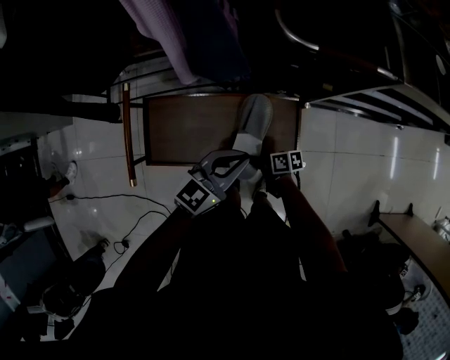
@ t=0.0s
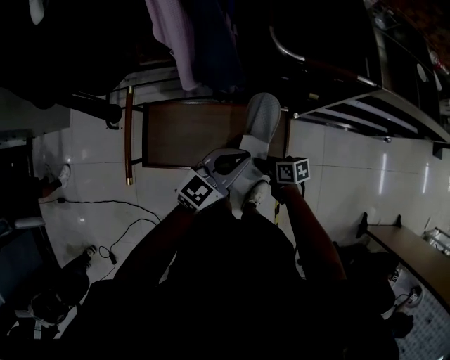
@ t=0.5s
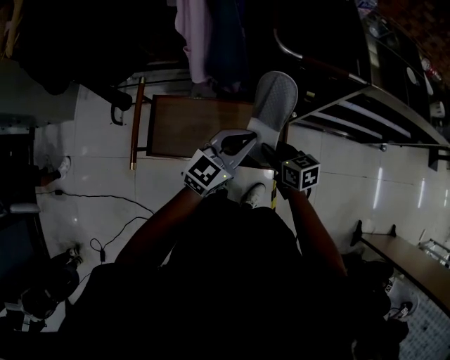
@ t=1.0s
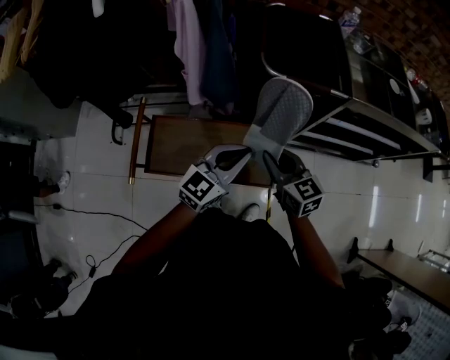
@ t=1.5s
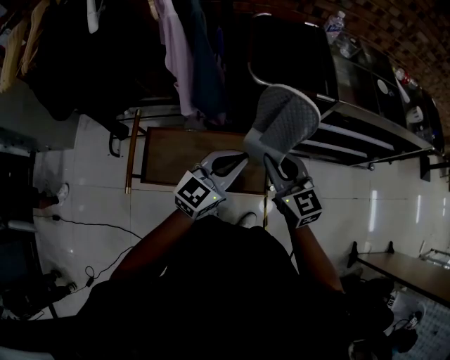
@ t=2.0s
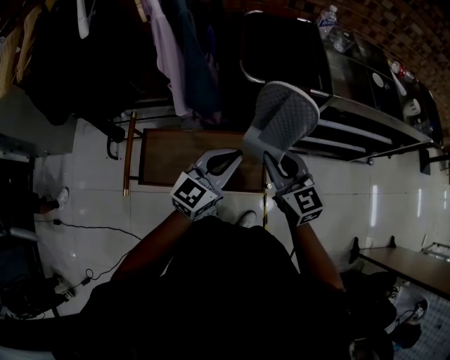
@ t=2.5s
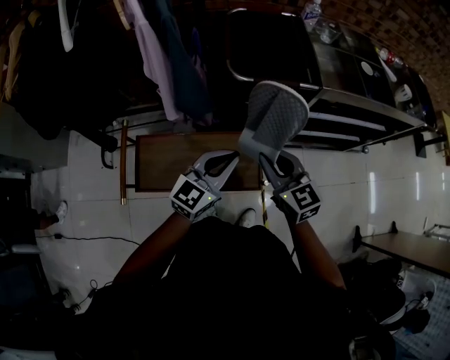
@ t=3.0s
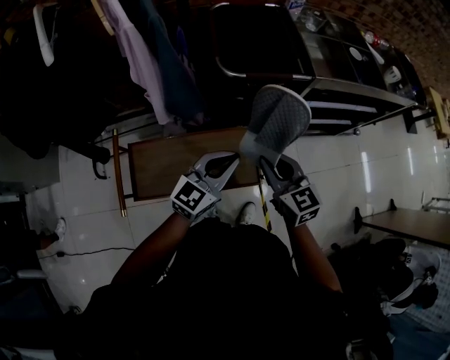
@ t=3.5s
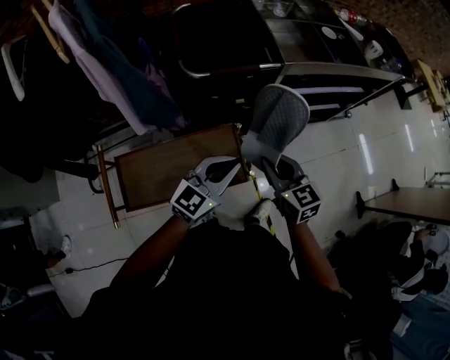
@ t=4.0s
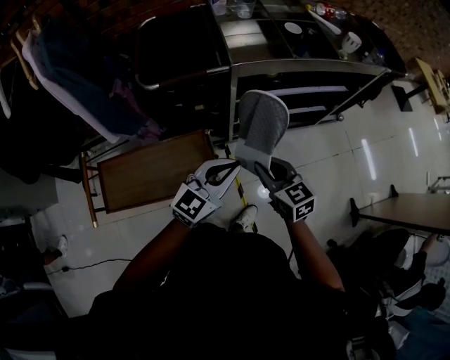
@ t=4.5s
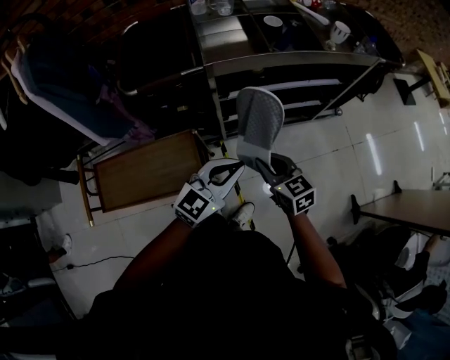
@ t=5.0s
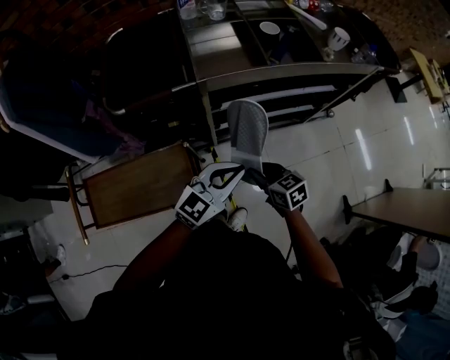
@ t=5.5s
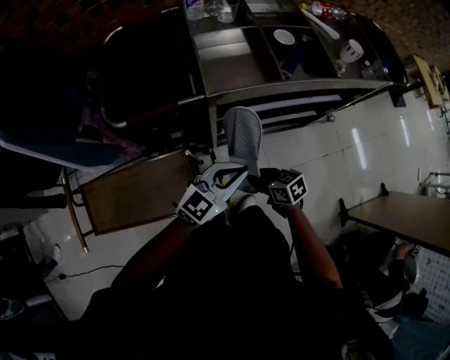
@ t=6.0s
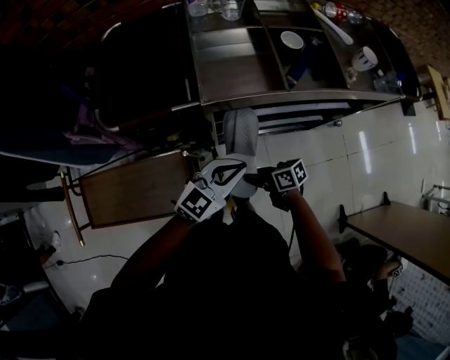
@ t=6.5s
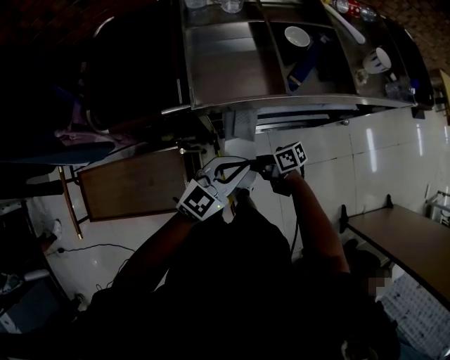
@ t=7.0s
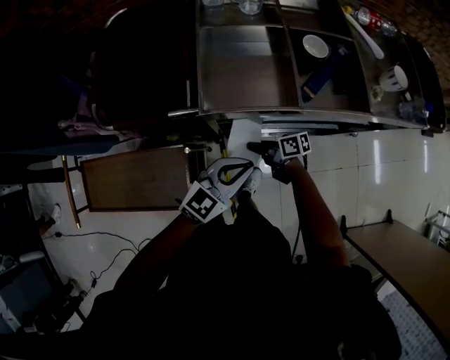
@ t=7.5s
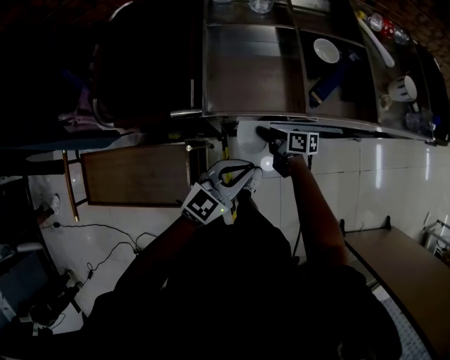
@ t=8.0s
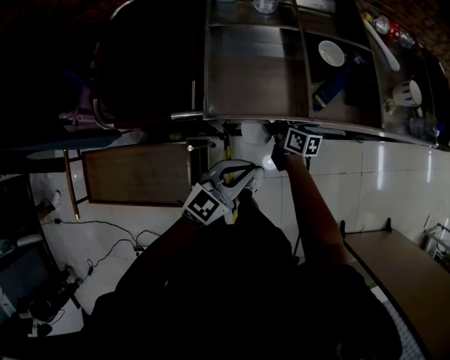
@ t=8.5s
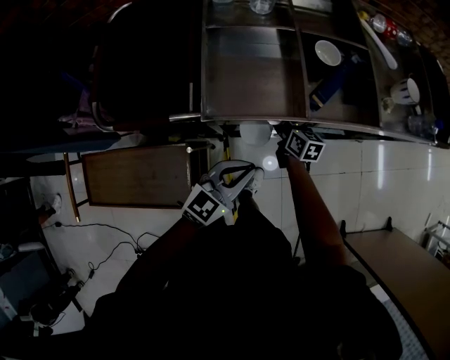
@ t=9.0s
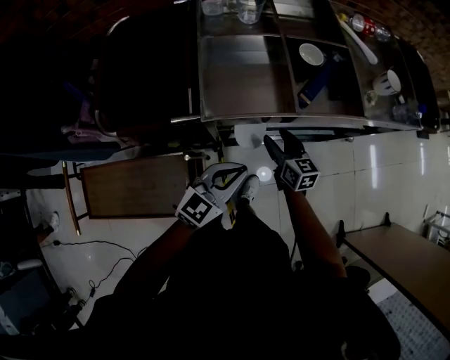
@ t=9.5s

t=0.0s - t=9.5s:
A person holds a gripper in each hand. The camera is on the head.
t=0.0s - t=2.0s: The right gripper goes some 40 cm upward, and rolls counterclockwise, seen from behind, by about 60 degrees, while the left gripper heads upward, covering about 15 cm.
t=2.0s - t=4.0s: The right gripper moves to the right and downward, approximately 15 cm, and swivels about 20 degrees, while the left gripper is displaced to the right by approximately 10 cm.
t=4.0s - t=5.5s: The left gripper is displaced to the right by approximately 25 cm. Meanwhile the right gripper travels to the right and downward by approximately 25 cm, and turns by about 20 degrees.
t=5.5s - t=7.5s: The right gripper ends up roughly 25 cm from where it was, and changes its angle by some 50 degrees. Meanwhile the left gripper changes place by roughly 15 cm.
t=7.5s - t=9.5s: The right gripper moves roughly 15 cm, swivels approximately 60 degrees, and opens up.

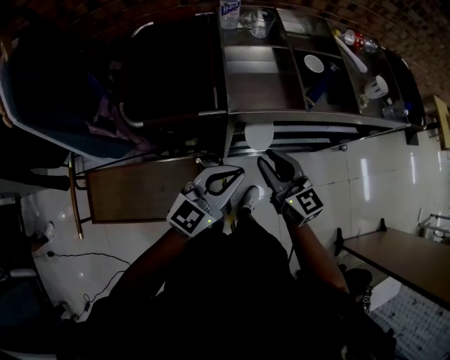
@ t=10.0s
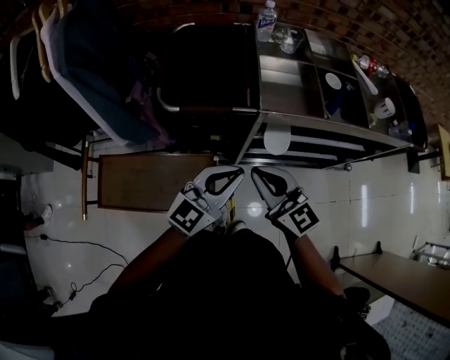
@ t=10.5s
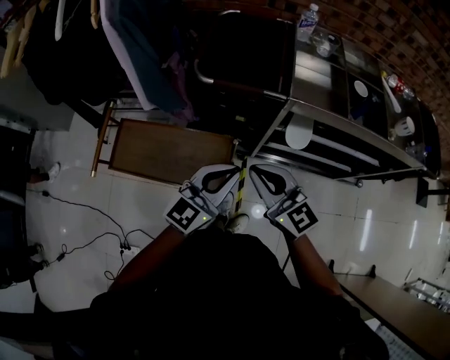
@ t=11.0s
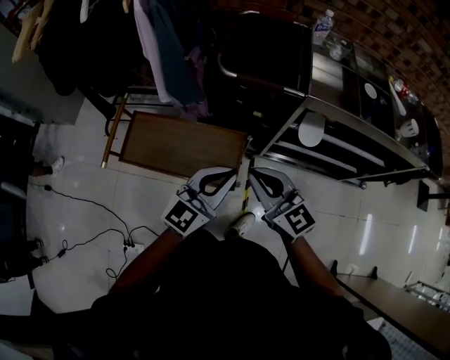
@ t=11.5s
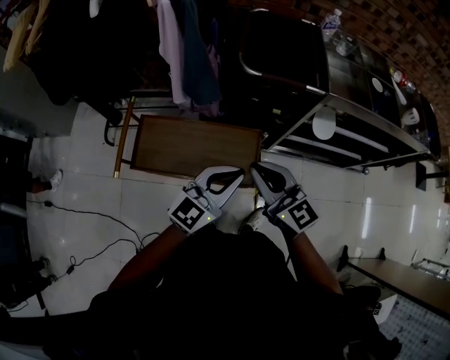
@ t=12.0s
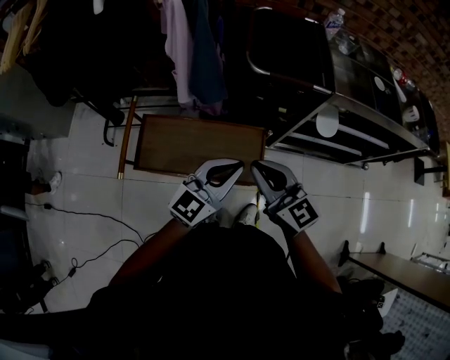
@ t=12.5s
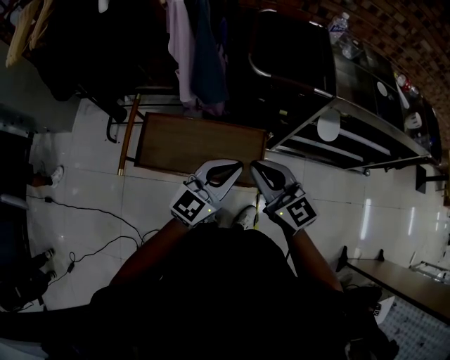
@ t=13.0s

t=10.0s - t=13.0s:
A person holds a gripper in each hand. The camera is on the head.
t=10.0s - t=11.5s: The grippers both shift to the left and backward by some 25 cm. The left gripper changes its angle by about 20 degrees, while the right gripper swivels approximately 30 degrees, and closes.
t=11.5s - t=13.0s: Both grippers move to the left, some 10 cm.

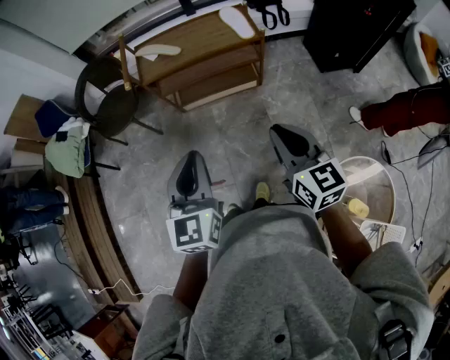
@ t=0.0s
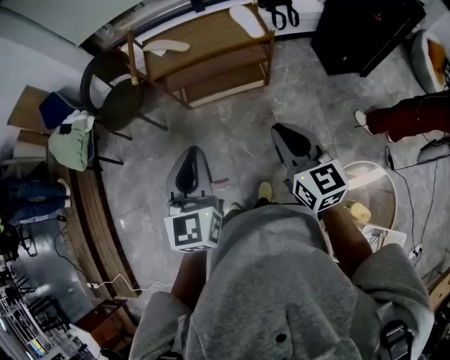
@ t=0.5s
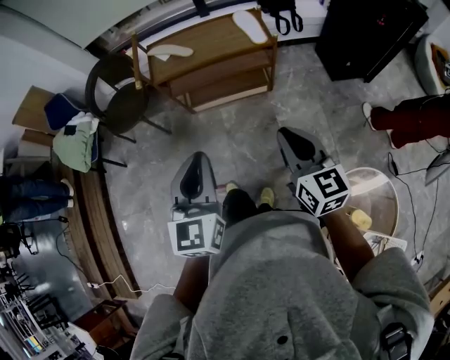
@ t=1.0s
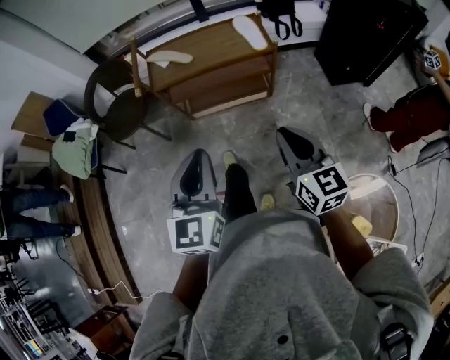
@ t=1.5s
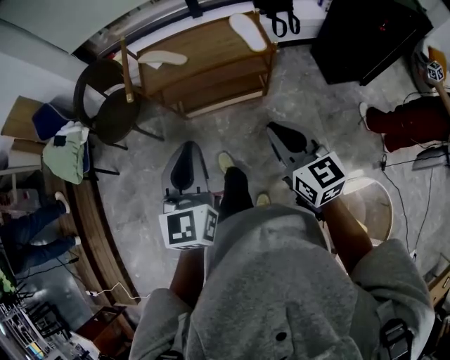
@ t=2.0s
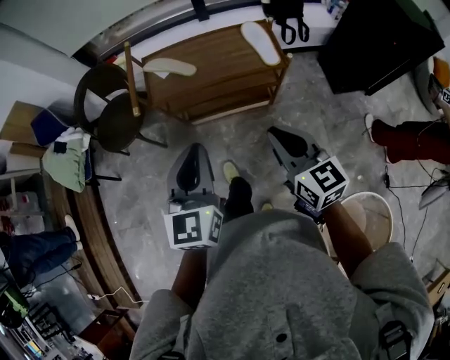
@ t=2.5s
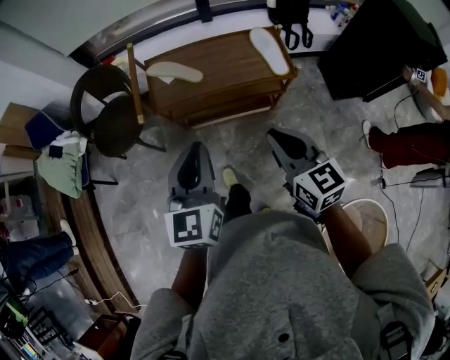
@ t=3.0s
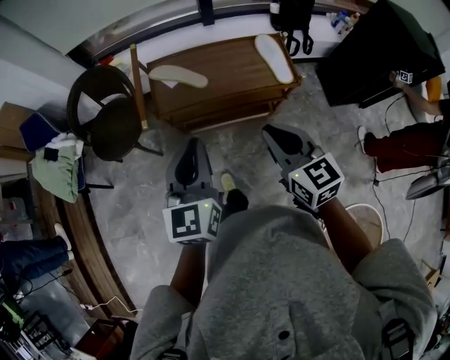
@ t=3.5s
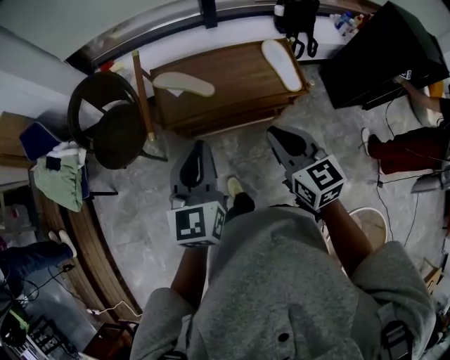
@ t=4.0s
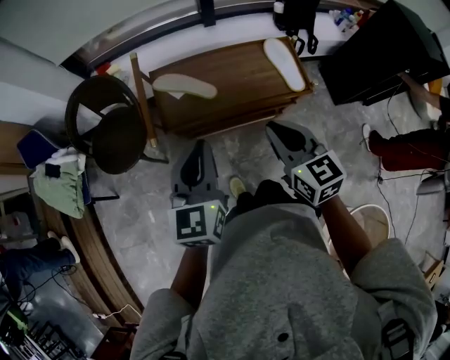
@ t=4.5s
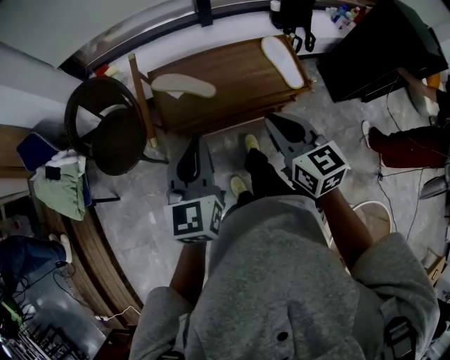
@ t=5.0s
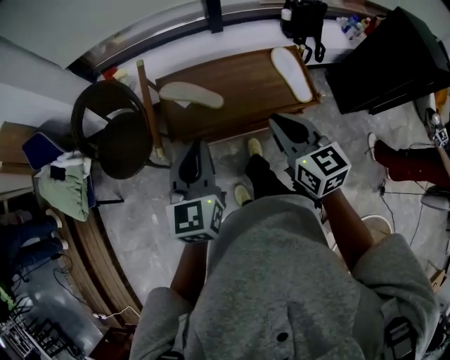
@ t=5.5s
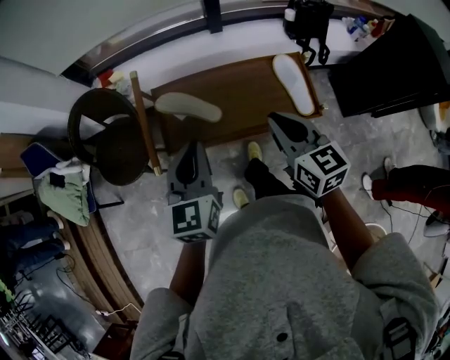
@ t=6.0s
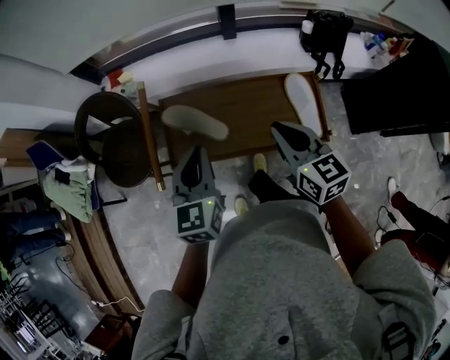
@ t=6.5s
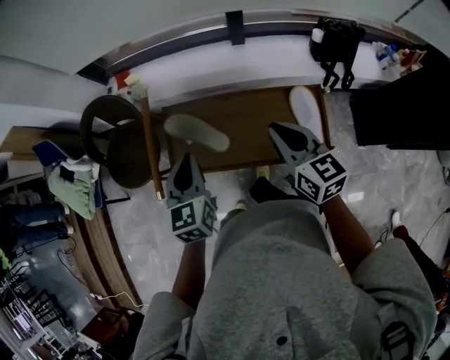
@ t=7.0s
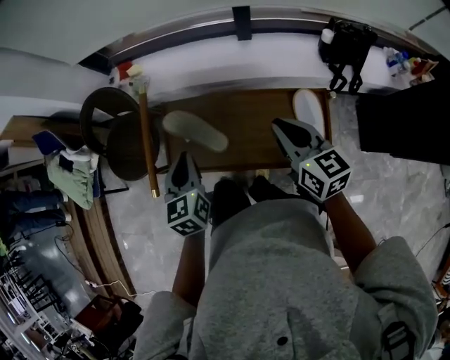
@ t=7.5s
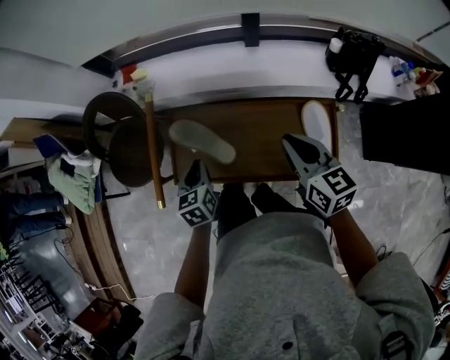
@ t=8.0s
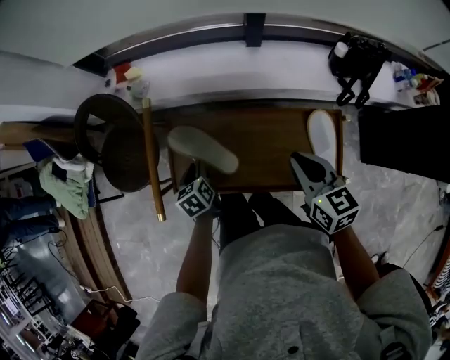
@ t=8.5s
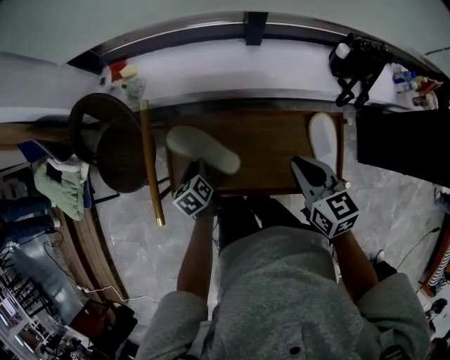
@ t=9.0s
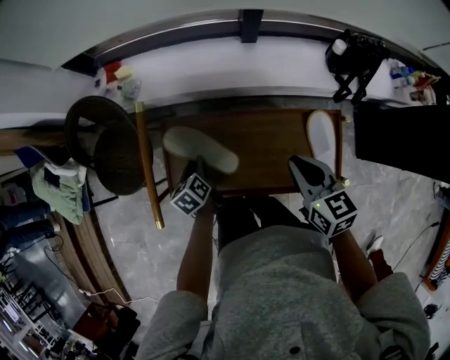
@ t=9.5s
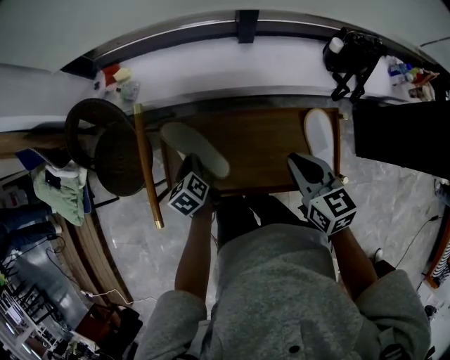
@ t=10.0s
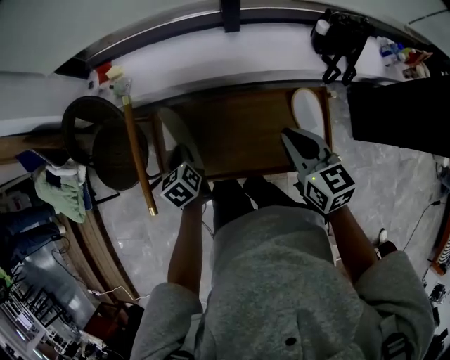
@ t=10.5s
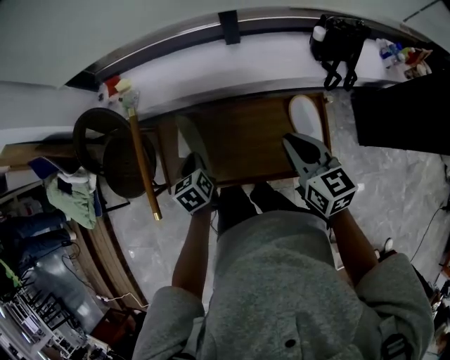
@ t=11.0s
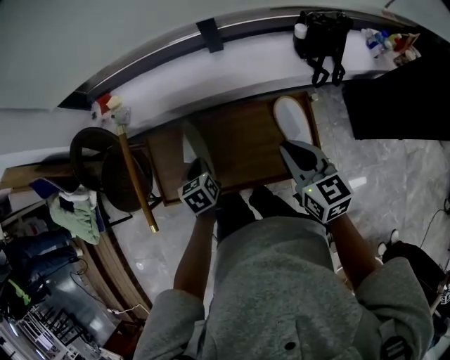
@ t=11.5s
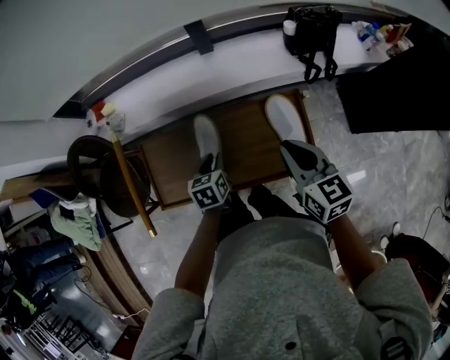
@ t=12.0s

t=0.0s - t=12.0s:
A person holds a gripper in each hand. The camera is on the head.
t=0.0s - t=2.0s: Both grippers move forward, roughly 10 cm.
t=2.0s - t=4.0s: Both grippers move forward, roughly 25 cm.
t=4.0s - t=6.0s: Both grippers travel together forward, some 15 cm.
t=6.0s - t=8.0s: The right gripper heads forward, to the right and downward, covering some 15 cm. The left gripper heads downward and forward, covering roughly 20 cm, and rotates about 30 degrees.
t=8.0s - t=10.0s: The left gripper heads downward and forward, covering roughly 10 cm, and swivels about 20 degrees.
t=10.0s - t=12.0s: The left gripper goes roughly 20 cm to the right, and turns by about 30 degrees, while the right gripper travels to the right and backward by approximately 10 cm.

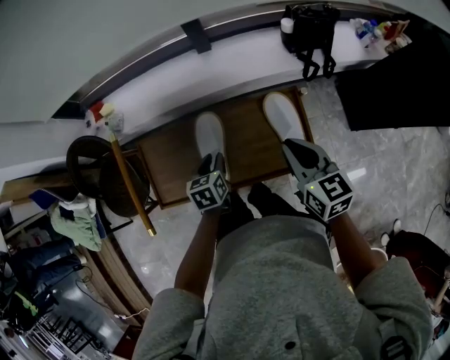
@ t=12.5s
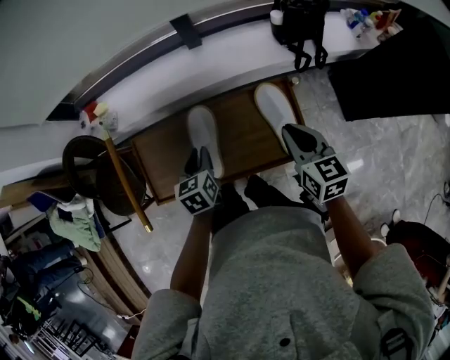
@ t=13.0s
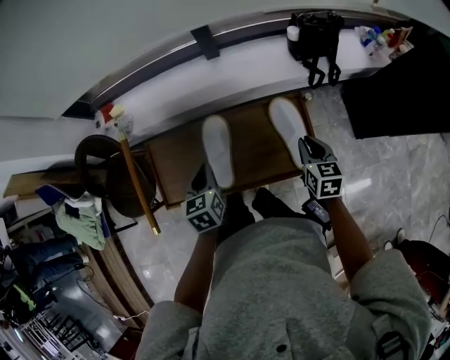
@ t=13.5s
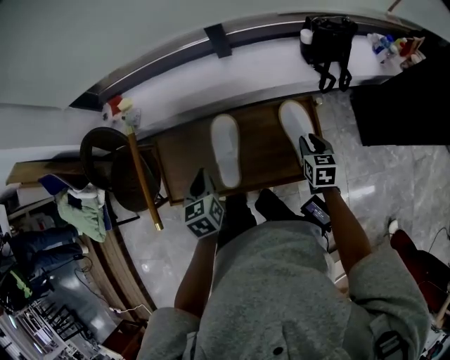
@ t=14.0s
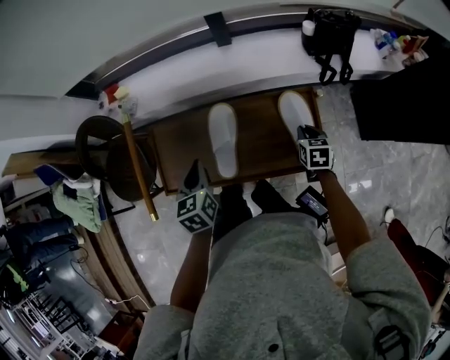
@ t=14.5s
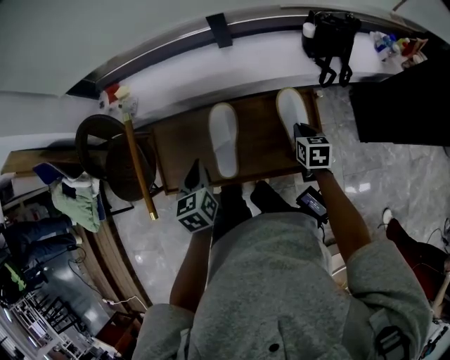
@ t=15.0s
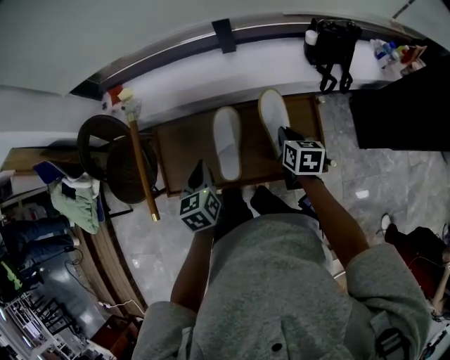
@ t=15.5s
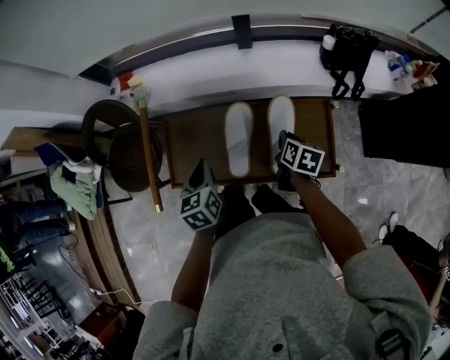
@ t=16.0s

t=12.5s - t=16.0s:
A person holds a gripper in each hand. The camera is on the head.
t=12.5s - t=14.5s: The right gripper goes approximately 20 cm downward, and turns by some 30 degrees. Meanwhile the left gripper travels upward and to the left by about 10 cm, and closes up.
t=14.5s - t=16.0s: The right gripper travels to the left and upward by roughly 15 cm, and changes its angle by roughly 20 degrees.
